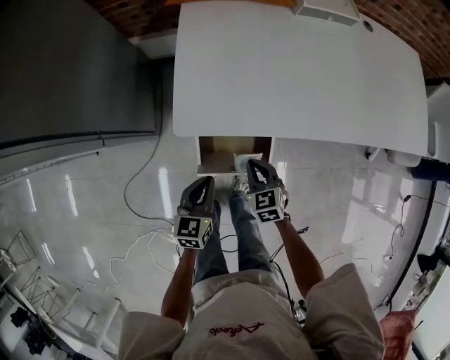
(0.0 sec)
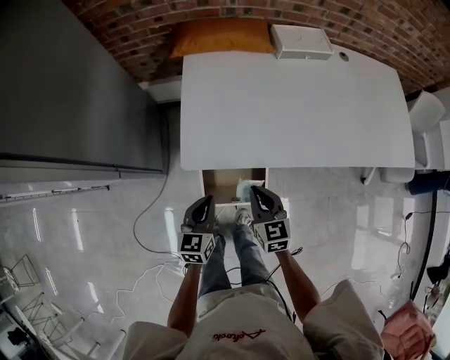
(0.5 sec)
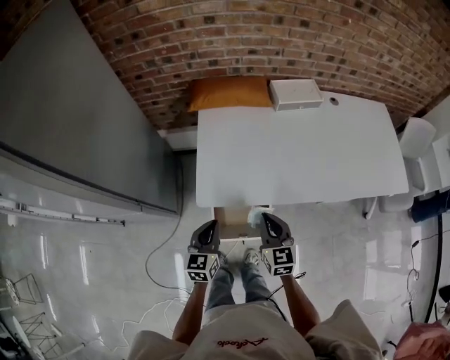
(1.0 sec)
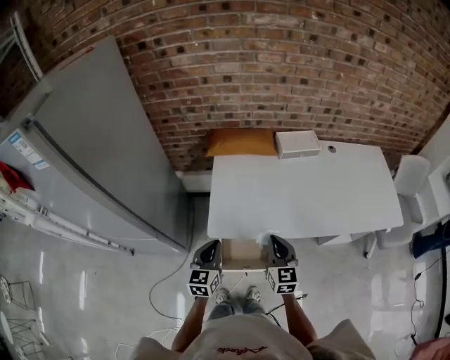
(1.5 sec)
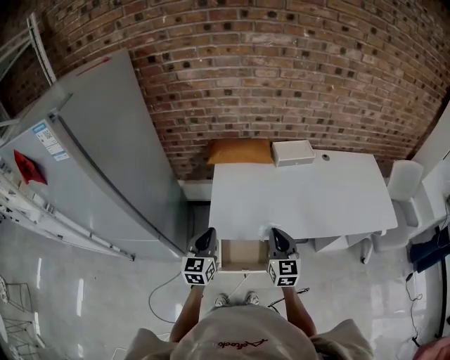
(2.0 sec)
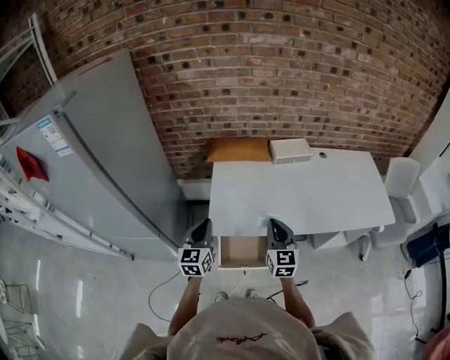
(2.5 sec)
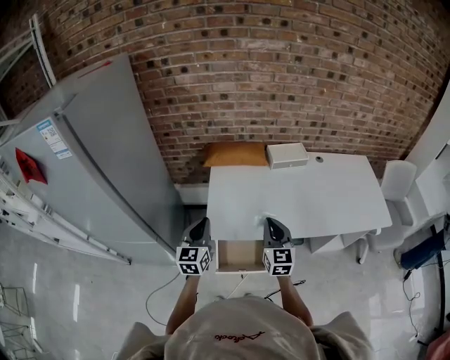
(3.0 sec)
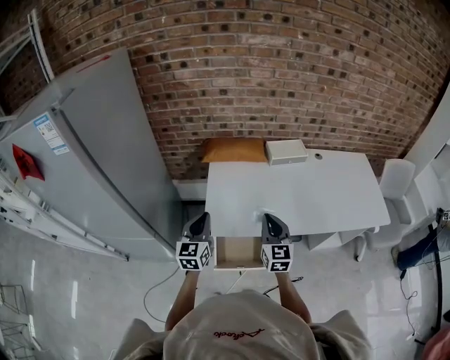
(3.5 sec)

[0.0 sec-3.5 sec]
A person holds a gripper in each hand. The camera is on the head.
0.0 sec to 2.0 sec: The grippers both shift upward by about 30 cm. The right gripper points its fingers approximately 40 degrees further upward. Meanwhile the left gripper rotates about 30 degrees.
2.0 sec to 3.5 sec: The grippers stay close to where they were, moving slightly.

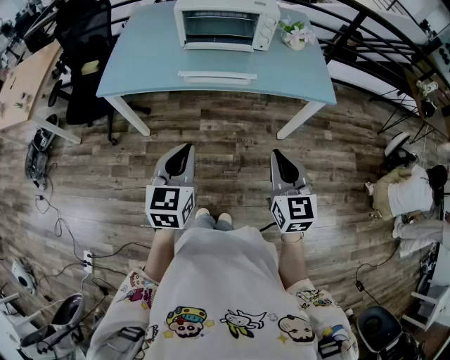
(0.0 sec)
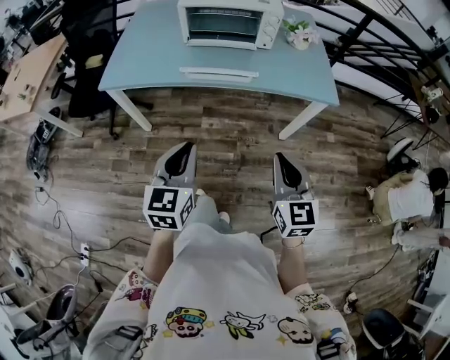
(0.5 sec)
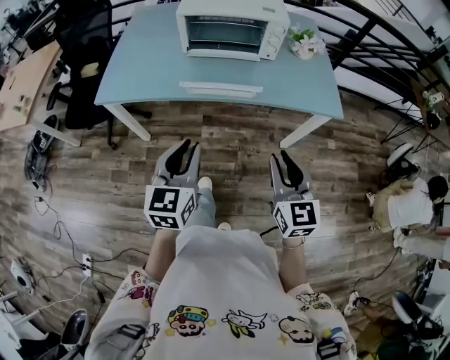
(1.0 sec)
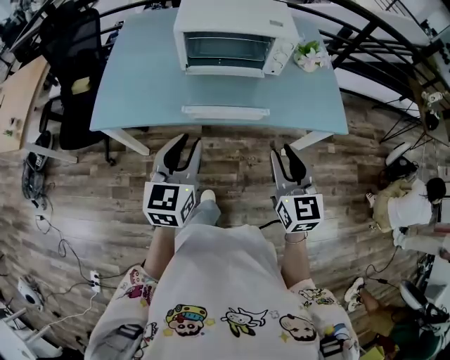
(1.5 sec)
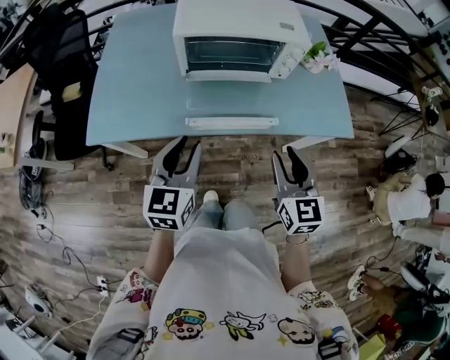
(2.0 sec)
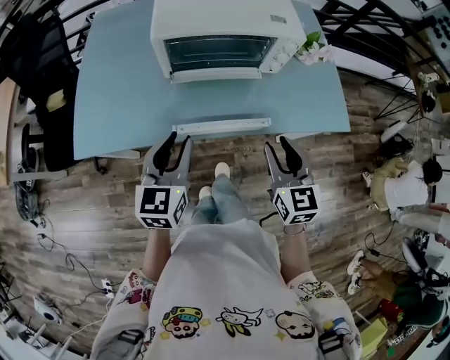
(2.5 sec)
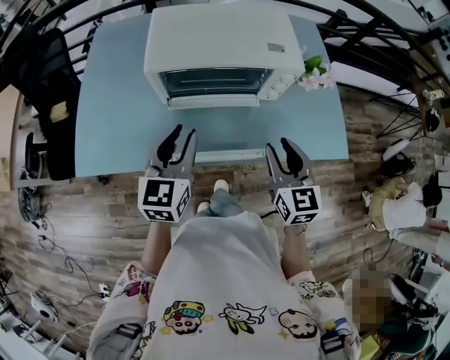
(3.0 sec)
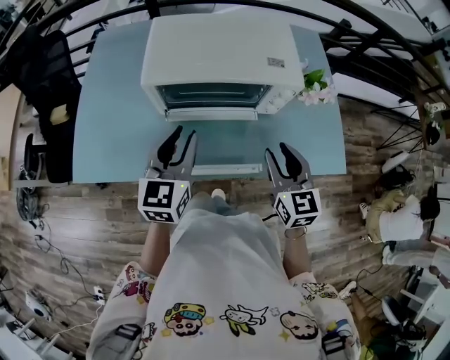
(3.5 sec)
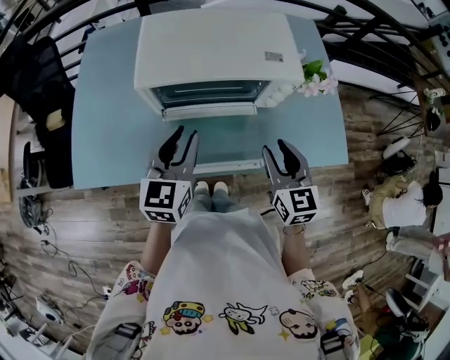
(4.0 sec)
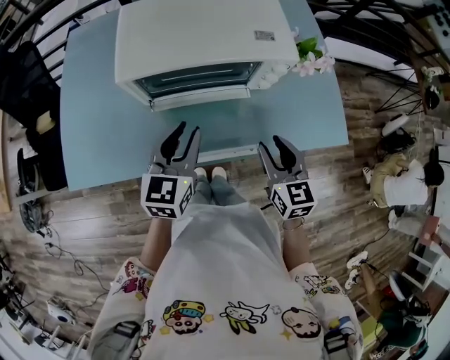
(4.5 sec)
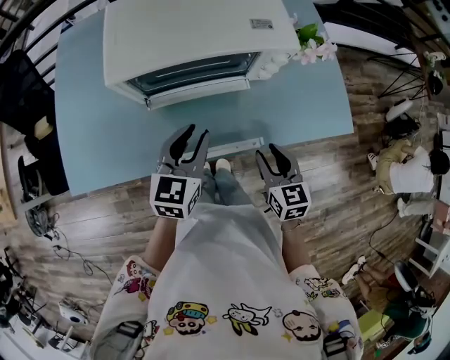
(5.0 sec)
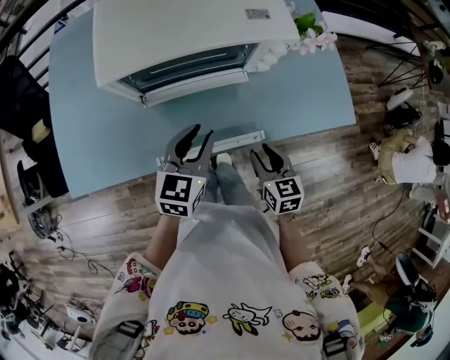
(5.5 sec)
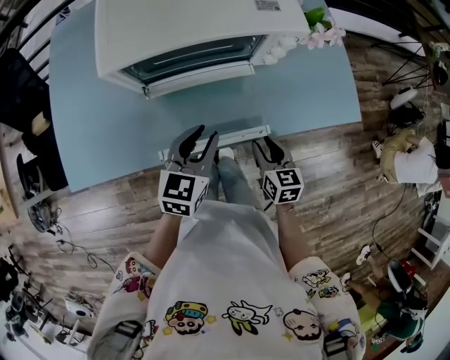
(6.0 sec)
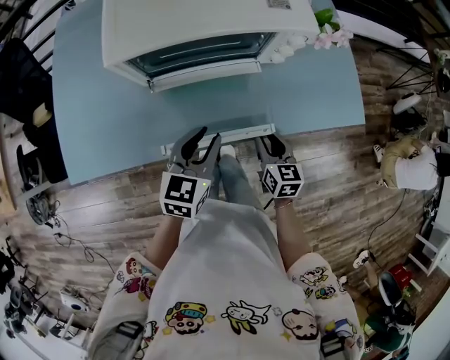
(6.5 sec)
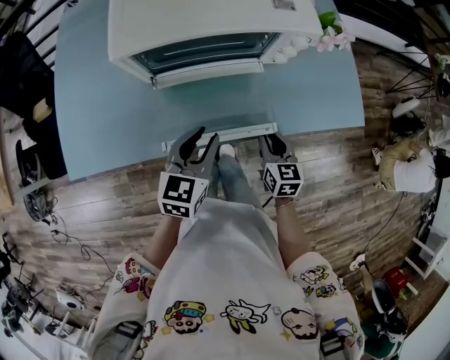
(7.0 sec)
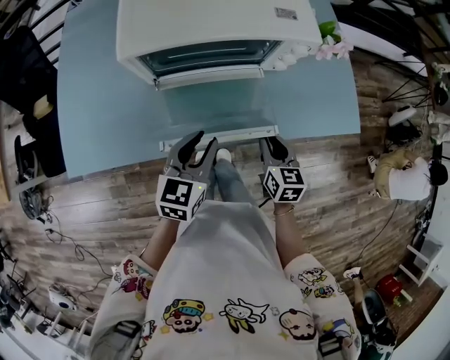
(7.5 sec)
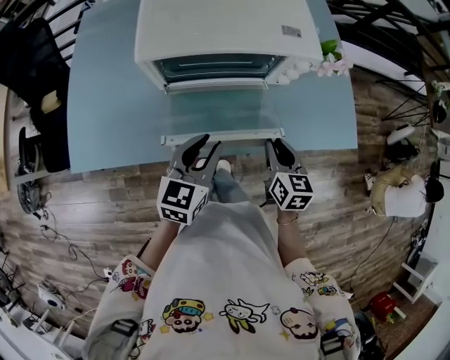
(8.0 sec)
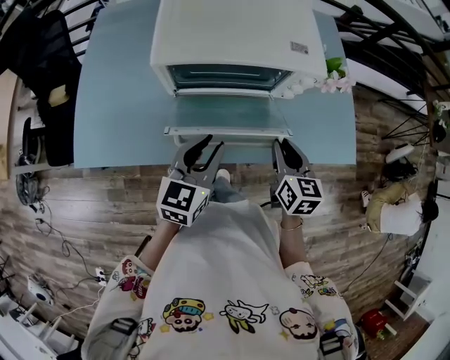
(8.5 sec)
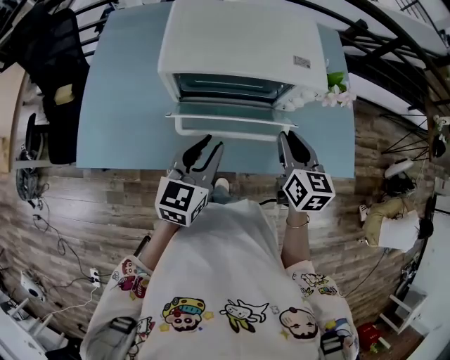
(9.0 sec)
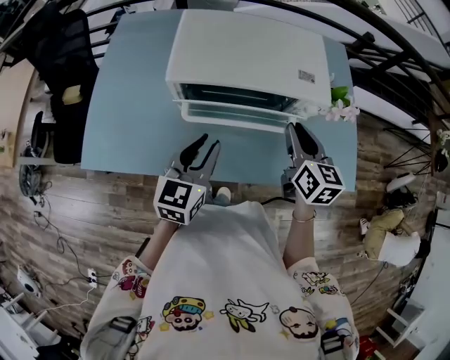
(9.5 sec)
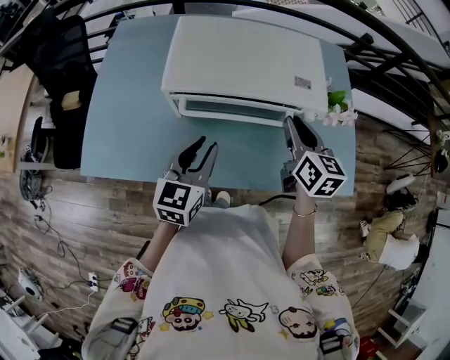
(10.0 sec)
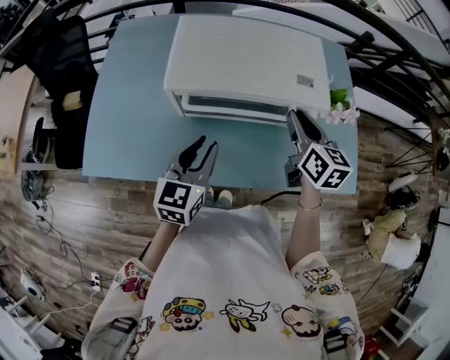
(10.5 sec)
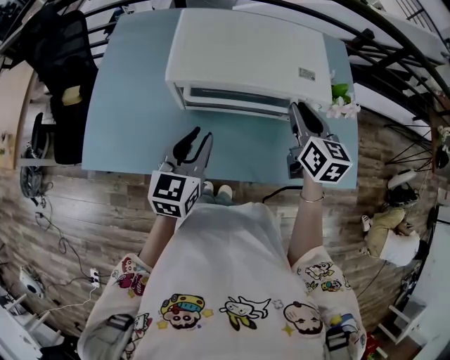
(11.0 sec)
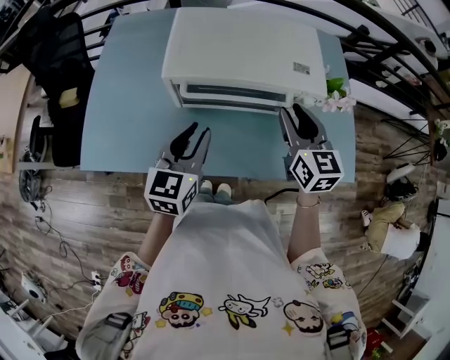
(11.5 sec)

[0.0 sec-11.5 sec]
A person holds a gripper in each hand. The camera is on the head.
0.0 sec to 2.0 sec: The two grippers go about 25 cm forward. The left gripper opens. Meanwhile the right gripper opens.
2.0 sec to 4.0 sec: The two grippers go some 20 cm forward.
4.0 sec to 6.0 sec: The left gripper heads downward and to the right, covering some 15 cm, and turns by roughly 20 degrees. Meanwhile the right gripper goes some 20 cm downward, and changes its angle by approximately 20 degrees.
6.0 sec to 7.5 sec: The grippers make only small movements.
7.5 sec to 9.5 sec: The left gripper travels upward and forward by about 10 cm. Meanwhile the right gripper goes some 25 cm upward and forward.
9.5 sec to 11.5 sec: The grippers make only small movements.

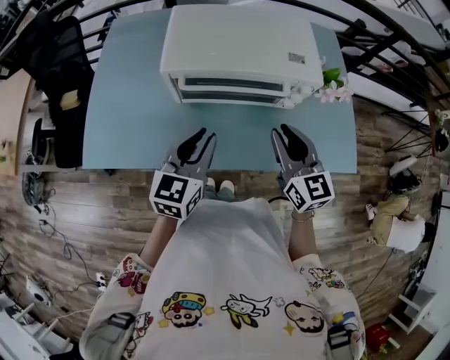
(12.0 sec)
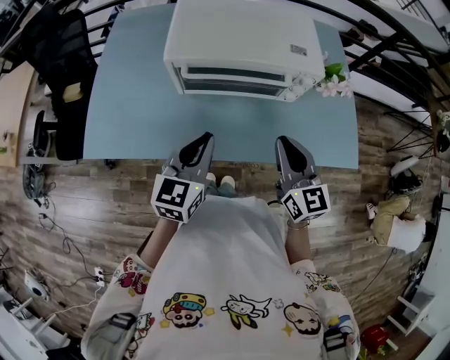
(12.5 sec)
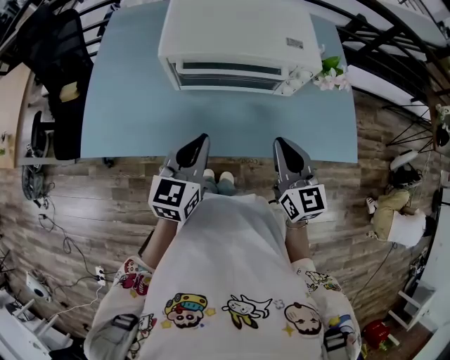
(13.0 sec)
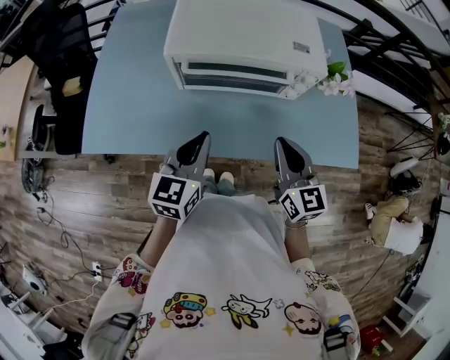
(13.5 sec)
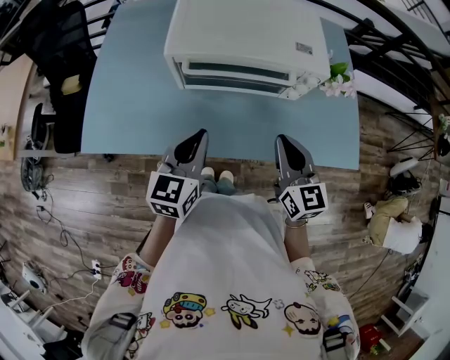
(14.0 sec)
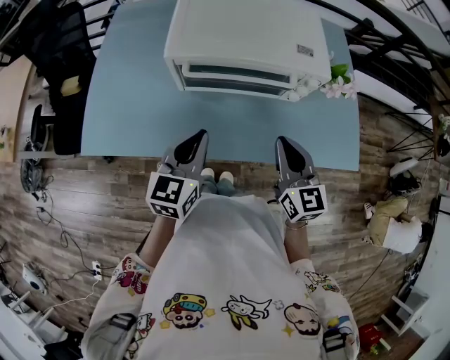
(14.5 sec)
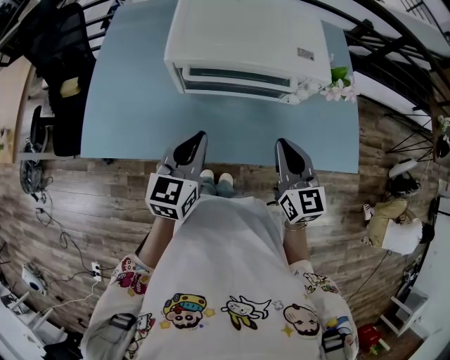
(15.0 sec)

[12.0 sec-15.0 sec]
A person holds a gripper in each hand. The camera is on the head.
12.0 sec to 13.5 sec: The right gripper is displaced backward by roughly 5 cm, and closes its fingers.
13.5 sec to 15.0 sec: There are only small adjustments of the grippers.

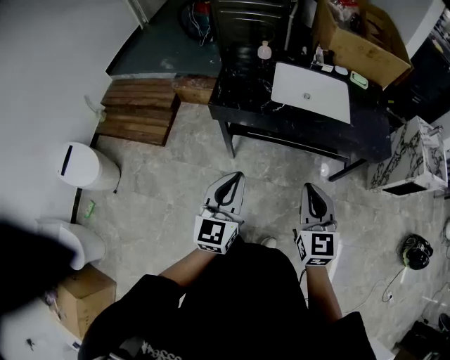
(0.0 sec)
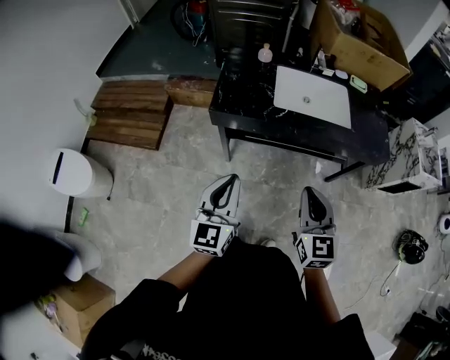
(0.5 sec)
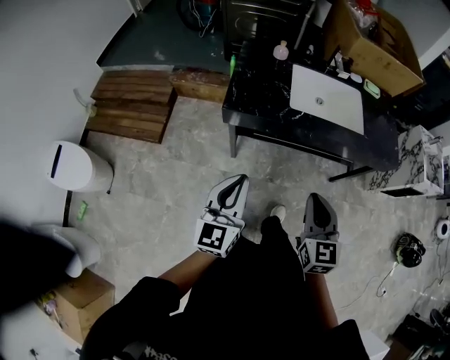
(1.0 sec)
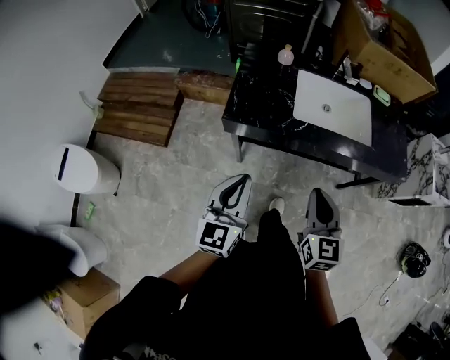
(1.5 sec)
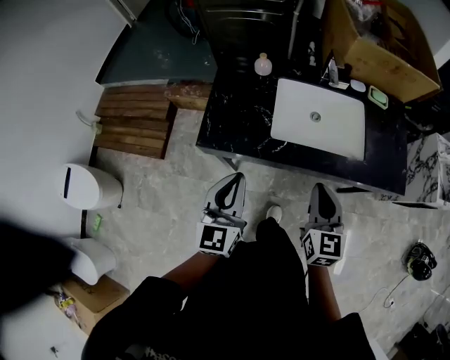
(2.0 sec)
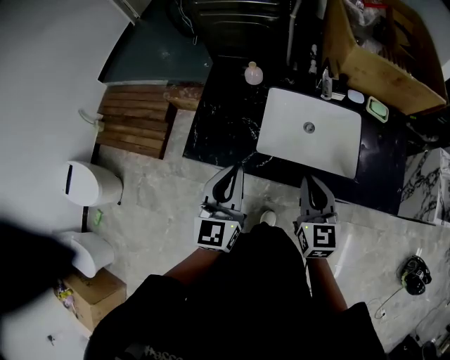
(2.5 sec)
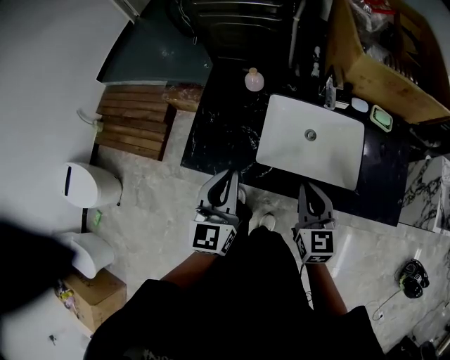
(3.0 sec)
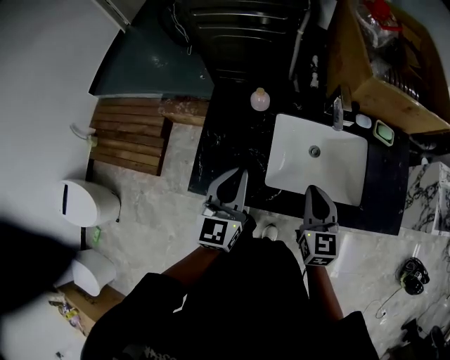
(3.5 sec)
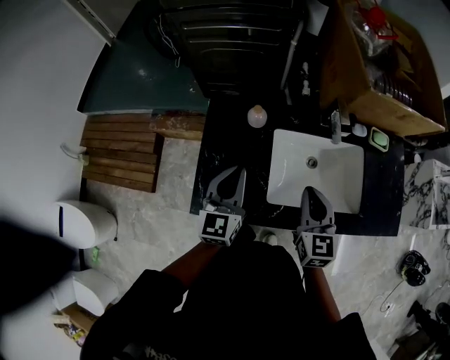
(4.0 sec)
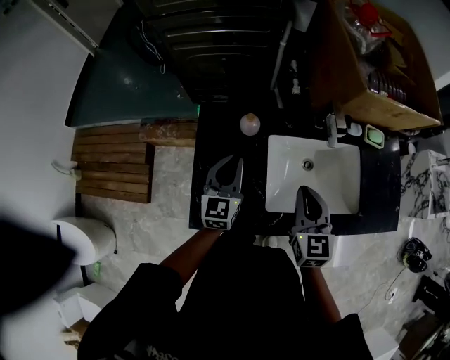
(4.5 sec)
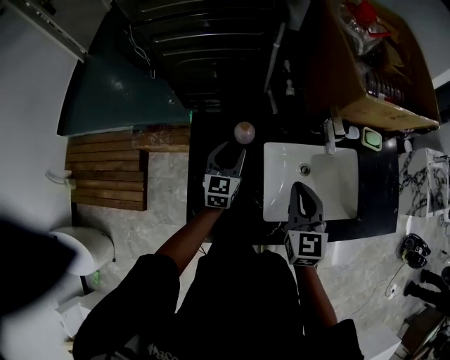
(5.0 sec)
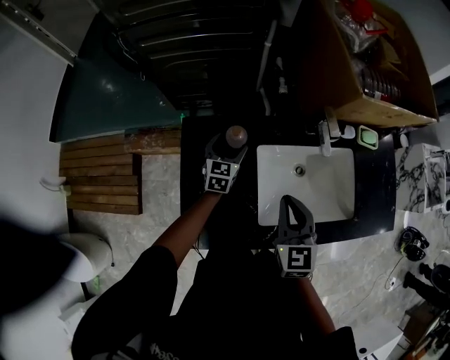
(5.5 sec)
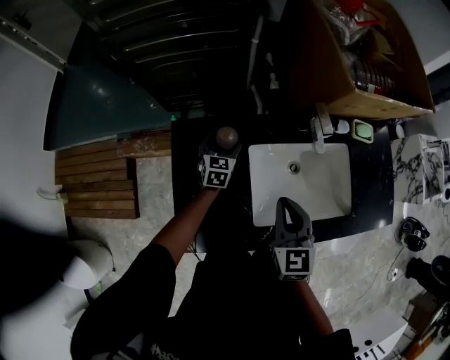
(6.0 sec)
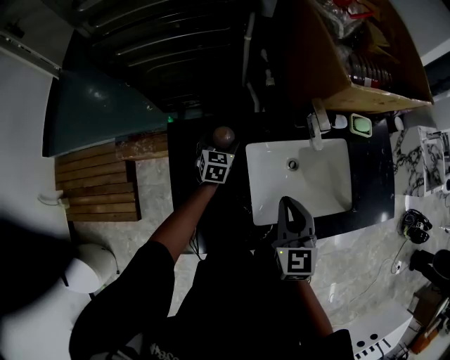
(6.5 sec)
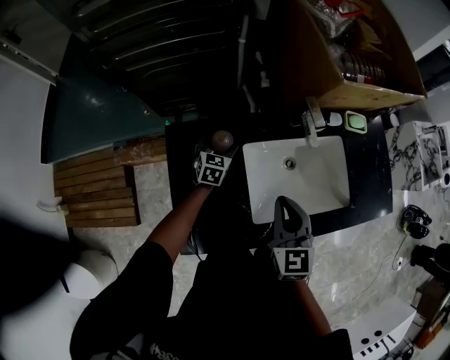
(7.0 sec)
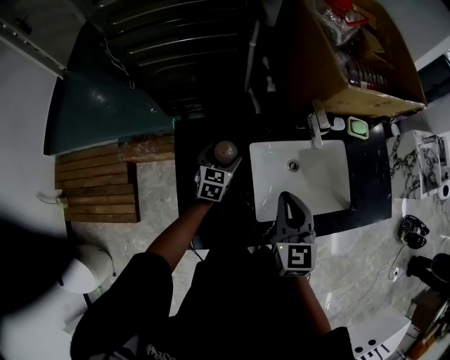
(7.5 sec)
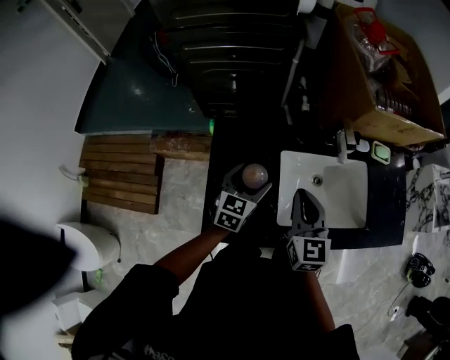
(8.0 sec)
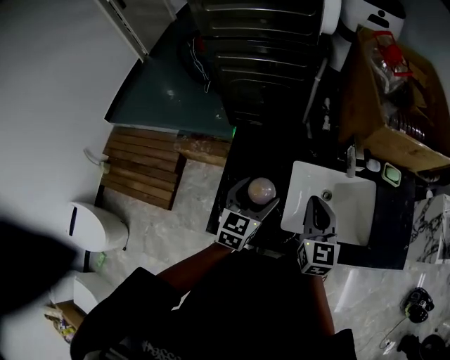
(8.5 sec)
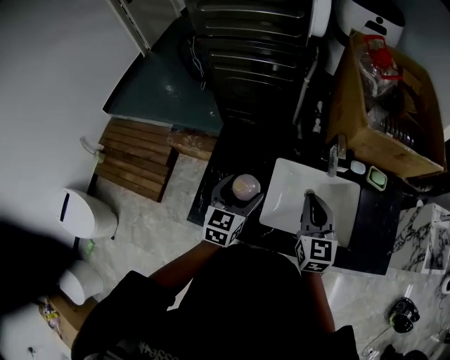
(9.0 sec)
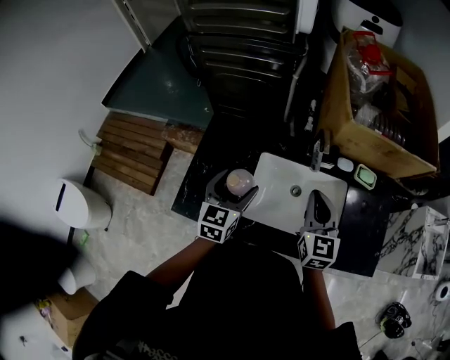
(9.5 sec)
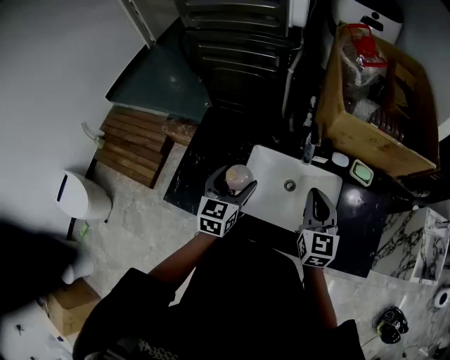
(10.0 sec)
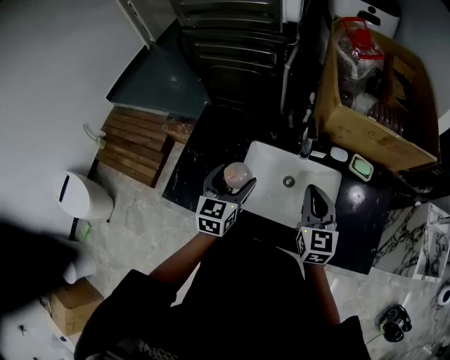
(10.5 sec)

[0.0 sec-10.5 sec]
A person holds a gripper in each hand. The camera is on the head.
0.0 sec to 2.0 sec: Both grippers travel together forward, some 25 cm.
2.0 sec to 4.0 sec: Both grippers move forward, approximately 25 cm.
4.0 sec to 6.5 sec: The right gripper goes some 5 cm forward, while the left gripper heads forward and downward, covering some 35 cm, turns by some 30 degrees, and opens its fingers.
6.5 sec to 8.5 sec: The right gripper goes roughly 5 cm upward; the left gripper moves backward and upward, about 30 cm.
8.5 sec to 10.5 sec: The right gripper is displaced to the right by approximately 20 cm; the left gripper moves to the right, some 15 cm.
